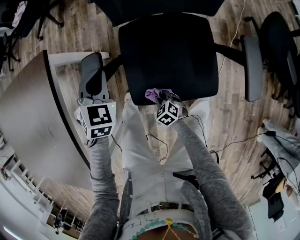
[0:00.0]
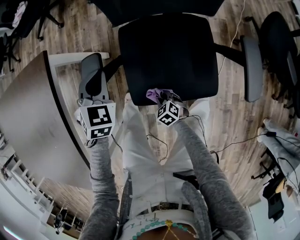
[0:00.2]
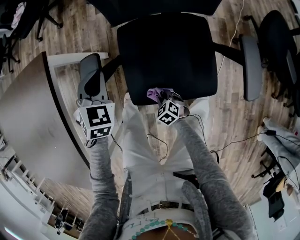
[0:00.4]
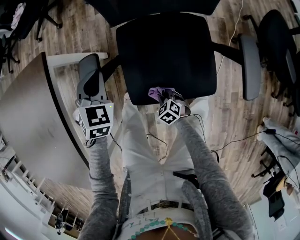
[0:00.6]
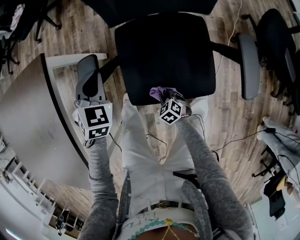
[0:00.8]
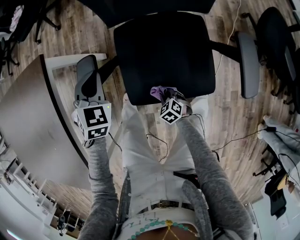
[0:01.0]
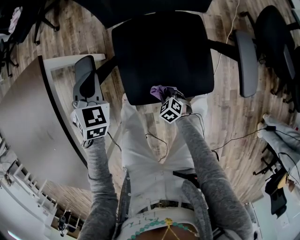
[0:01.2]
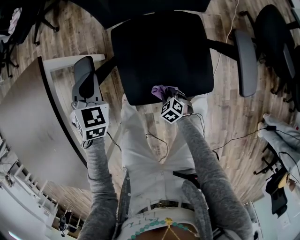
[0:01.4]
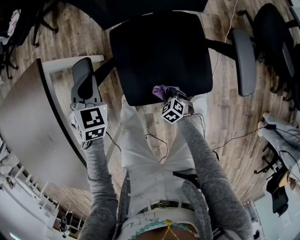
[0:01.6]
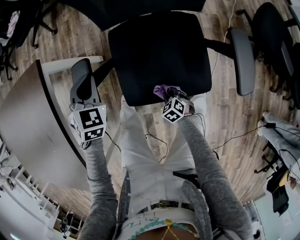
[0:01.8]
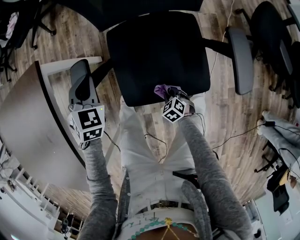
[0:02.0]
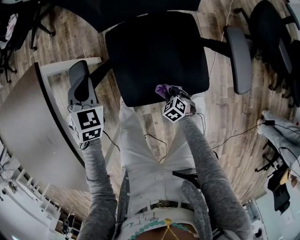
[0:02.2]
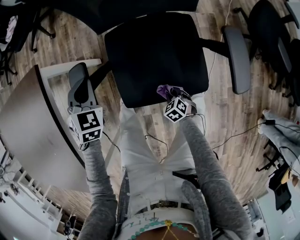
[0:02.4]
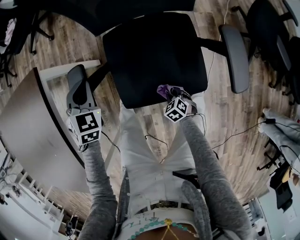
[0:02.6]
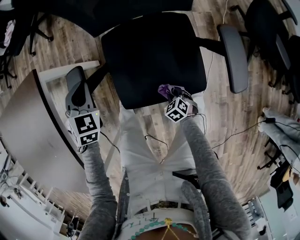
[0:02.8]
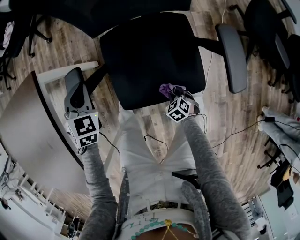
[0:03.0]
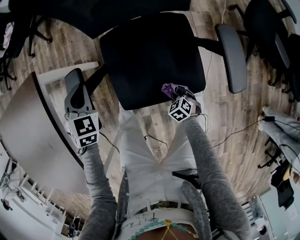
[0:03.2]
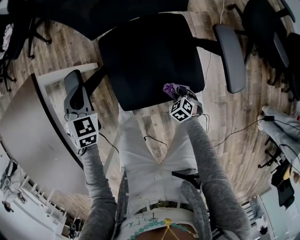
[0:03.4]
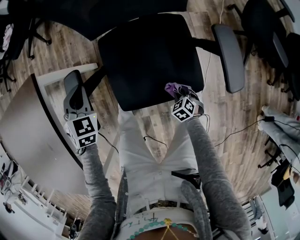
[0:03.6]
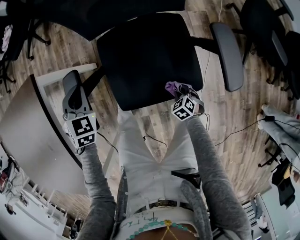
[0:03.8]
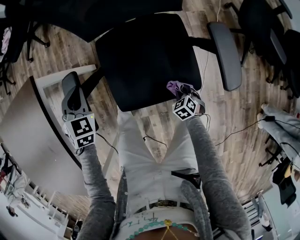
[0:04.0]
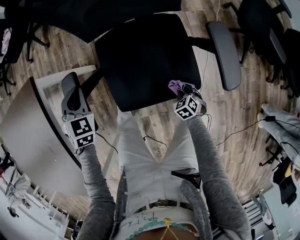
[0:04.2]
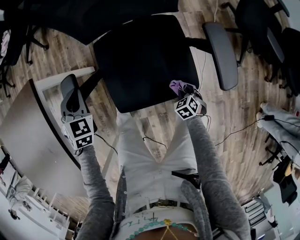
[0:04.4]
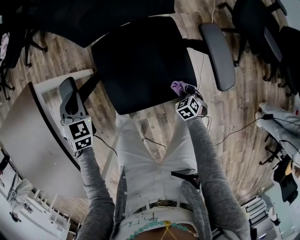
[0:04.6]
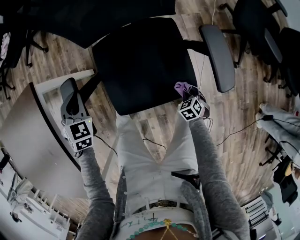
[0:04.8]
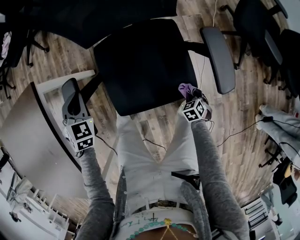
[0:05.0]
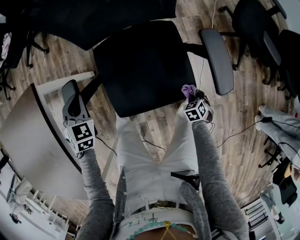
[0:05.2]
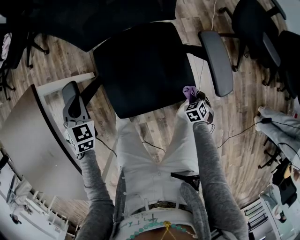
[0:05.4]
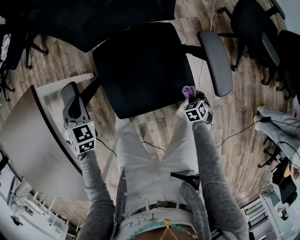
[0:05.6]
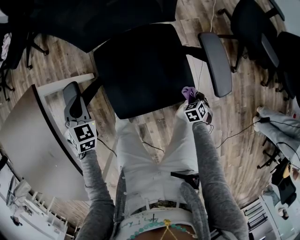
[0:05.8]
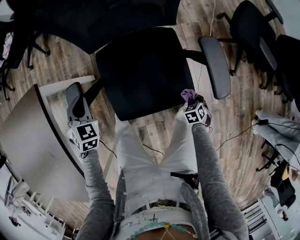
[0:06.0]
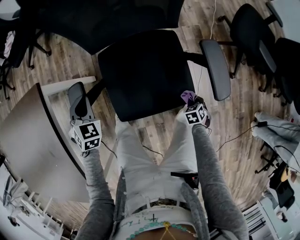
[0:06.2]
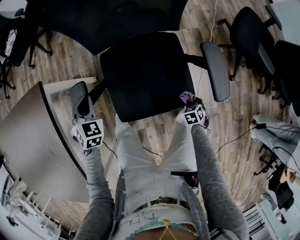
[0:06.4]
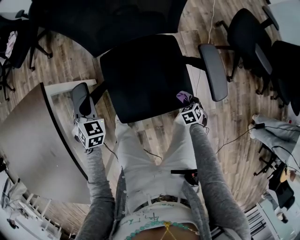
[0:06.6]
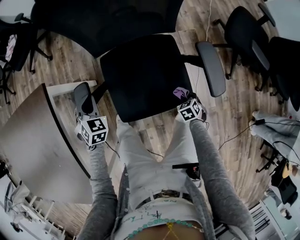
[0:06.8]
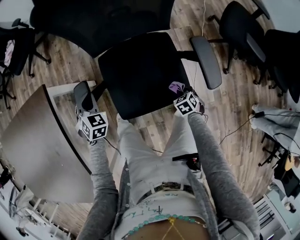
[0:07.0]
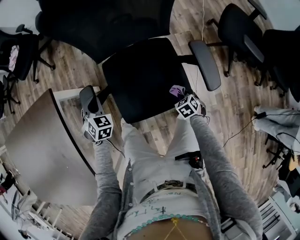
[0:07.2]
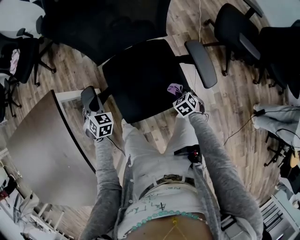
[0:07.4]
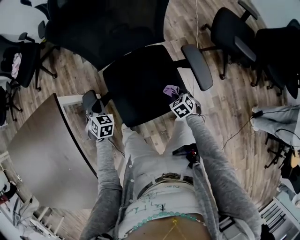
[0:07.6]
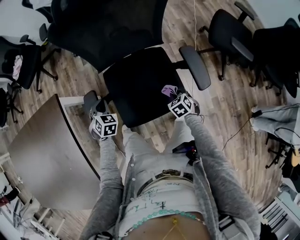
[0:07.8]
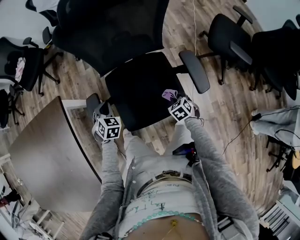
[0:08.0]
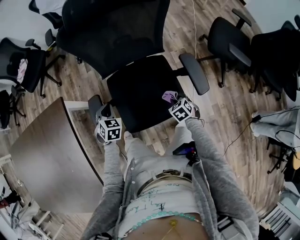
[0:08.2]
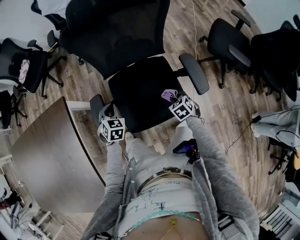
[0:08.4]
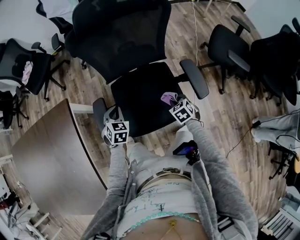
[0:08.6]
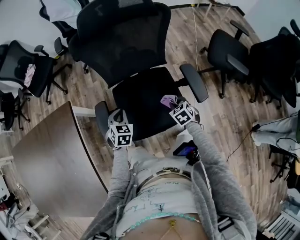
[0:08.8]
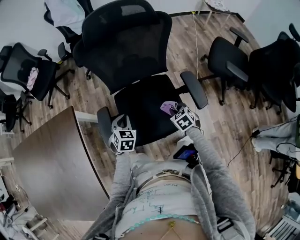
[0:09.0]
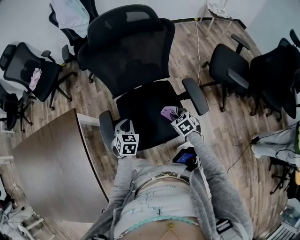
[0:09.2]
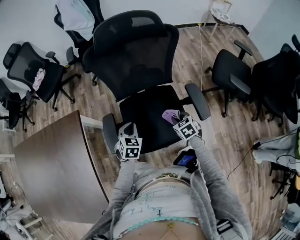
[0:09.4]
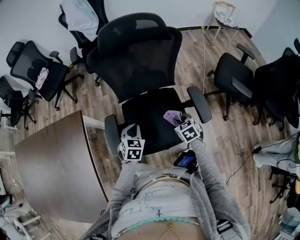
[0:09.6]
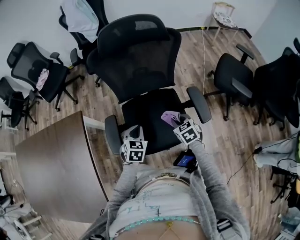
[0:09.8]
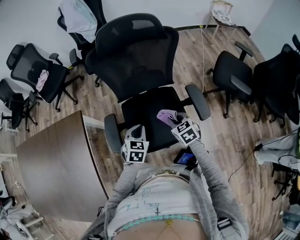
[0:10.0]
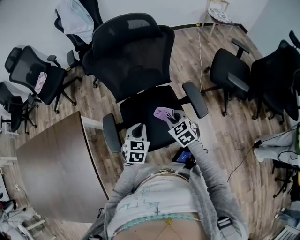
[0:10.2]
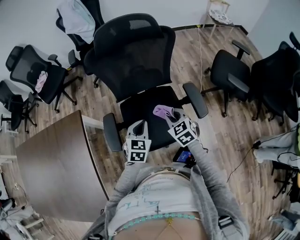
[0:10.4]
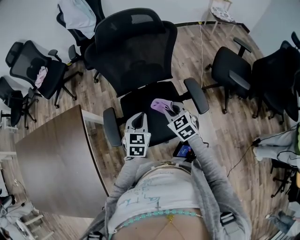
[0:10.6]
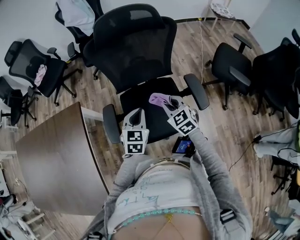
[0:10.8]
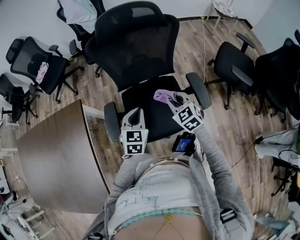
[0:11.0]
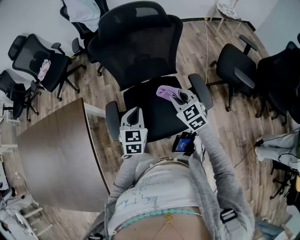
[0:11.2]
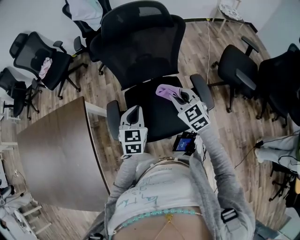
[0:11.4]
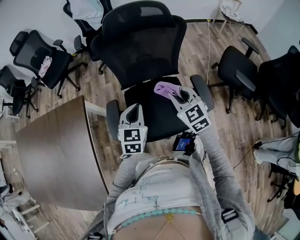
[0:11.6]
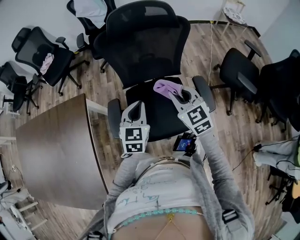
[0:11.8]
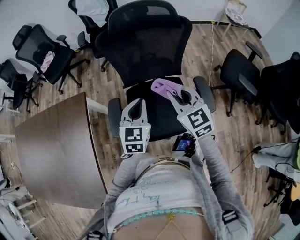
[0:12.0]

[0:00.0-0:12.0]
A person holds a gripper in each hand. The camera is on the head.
0:00.0 to 0:01.6: The right gripper goes about 5 cm to the right.
0:01.6 to 0:03.0: The right gripper travels to the right by about 5 cm.
0:03.0 to 0:04.4: The right gripper travels to the right by some 10 cm.
0:04.4 to 0:06.0: The right gripper travels to the right by some 10 cm.
0:06.0 to 0:07.6: The right gripper is displaced upward, to the left and forward by approximately 15 cm.
0:07.6 to 0:09.0: The left gripper travels to the right and upward by approximately 10 cm; the right gripper is displaced upward by roughly 10 cm.
0:09.0 to 0:10.4: The left gripper travels upward and to the right by about 10 cm; the right gripper moves upward, some 15 cm.
0:10.4 to 0:12.0: The grippers both shift upward by some 10 cm. The right gripper turns by roughly 20 degrees.

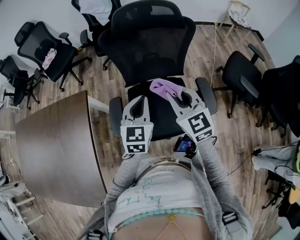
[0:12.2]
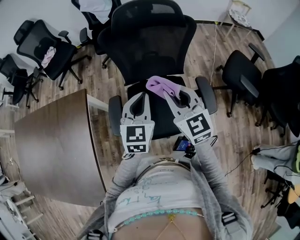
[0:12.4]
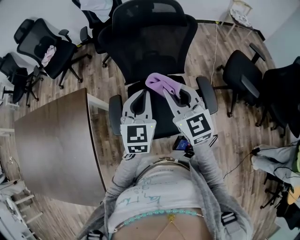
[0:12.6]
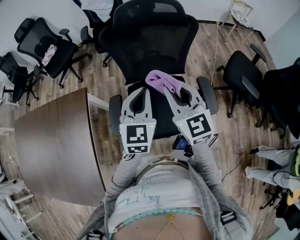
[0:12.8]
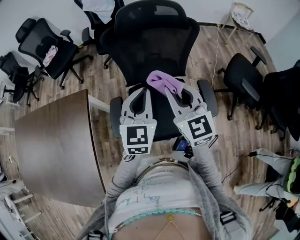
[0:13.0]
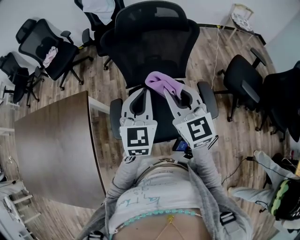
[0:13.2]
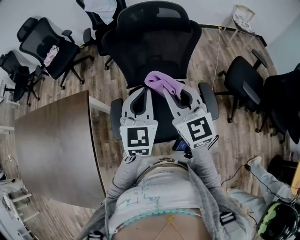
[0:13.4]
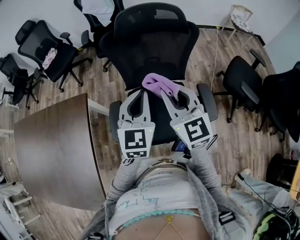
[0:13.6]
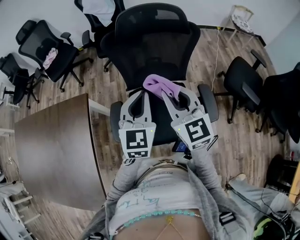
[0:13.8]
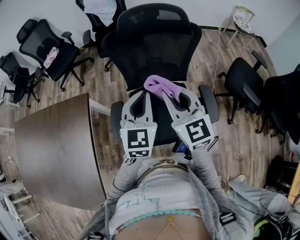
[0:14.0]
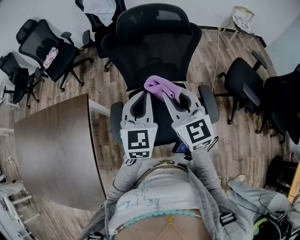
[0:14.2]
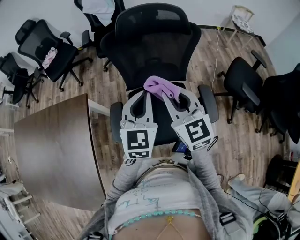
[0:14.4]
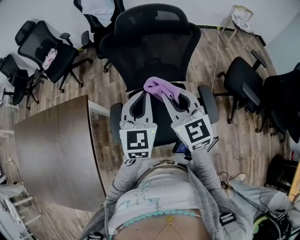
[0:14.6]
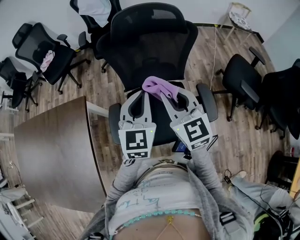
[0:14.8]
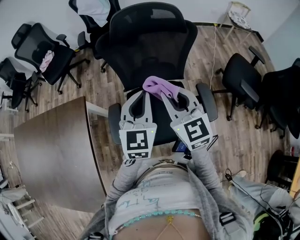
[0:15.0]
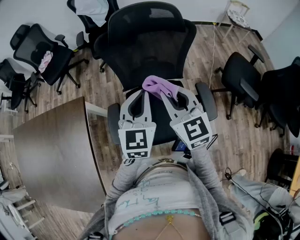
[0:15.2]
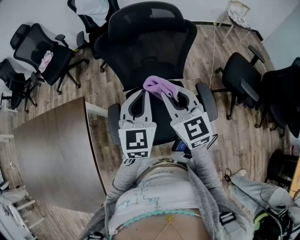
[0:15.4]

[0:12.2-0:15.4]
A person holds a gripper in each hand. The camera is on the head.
0:12.2 to 0:13.8: The grippers both shift upward by about 5 cm.
0:13.8 to 0:15.4: The grippers stay close to where they were, moving slightly.

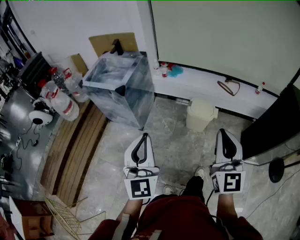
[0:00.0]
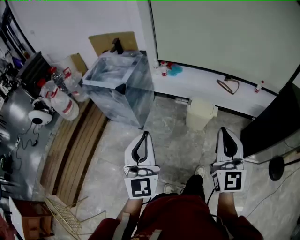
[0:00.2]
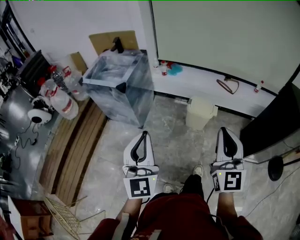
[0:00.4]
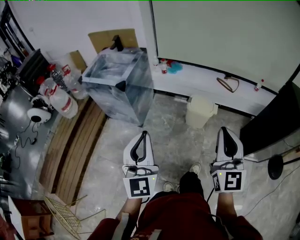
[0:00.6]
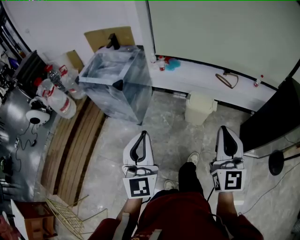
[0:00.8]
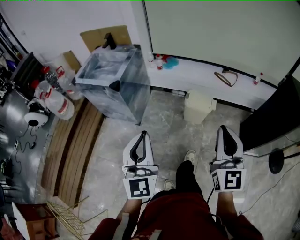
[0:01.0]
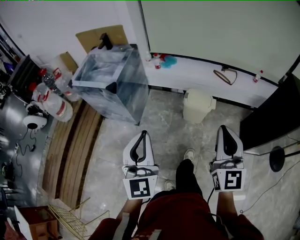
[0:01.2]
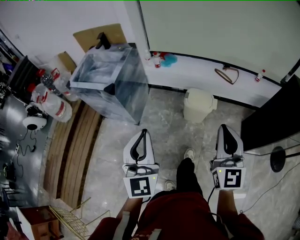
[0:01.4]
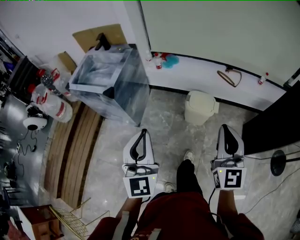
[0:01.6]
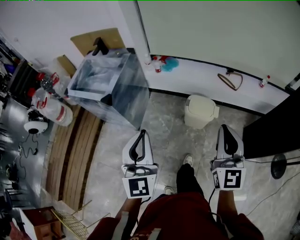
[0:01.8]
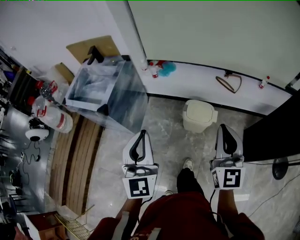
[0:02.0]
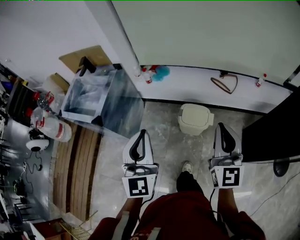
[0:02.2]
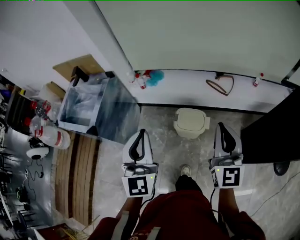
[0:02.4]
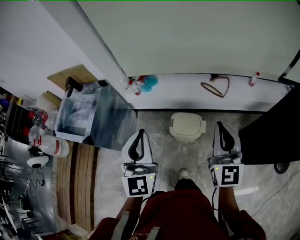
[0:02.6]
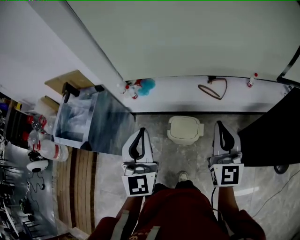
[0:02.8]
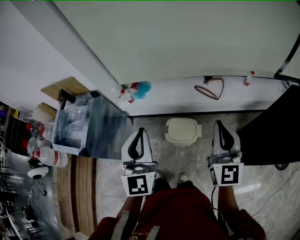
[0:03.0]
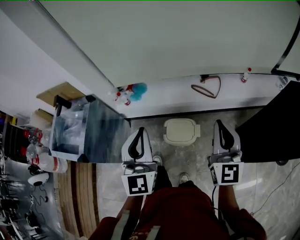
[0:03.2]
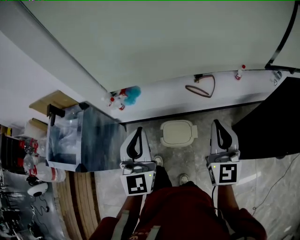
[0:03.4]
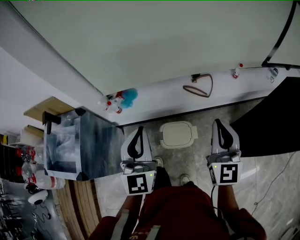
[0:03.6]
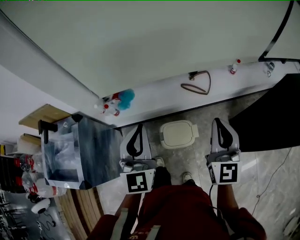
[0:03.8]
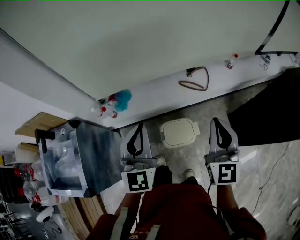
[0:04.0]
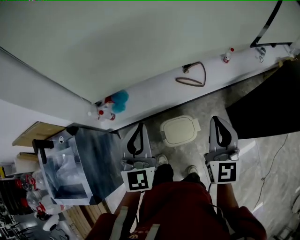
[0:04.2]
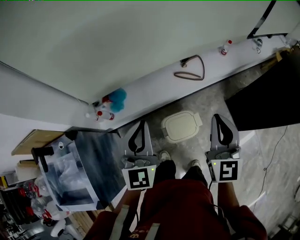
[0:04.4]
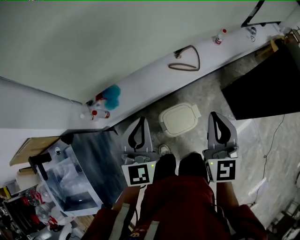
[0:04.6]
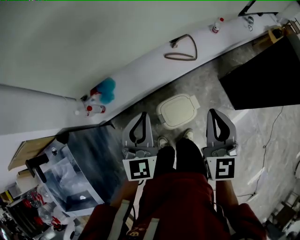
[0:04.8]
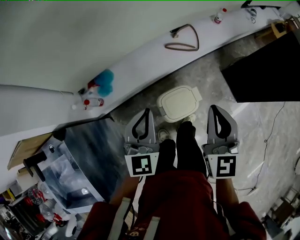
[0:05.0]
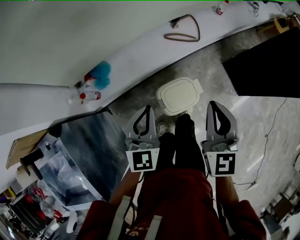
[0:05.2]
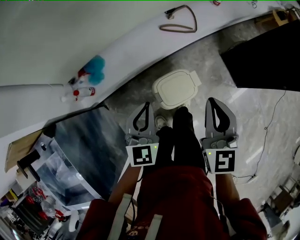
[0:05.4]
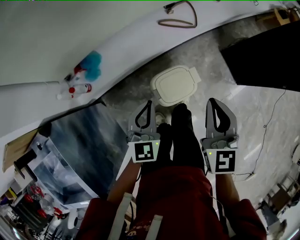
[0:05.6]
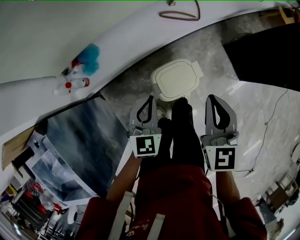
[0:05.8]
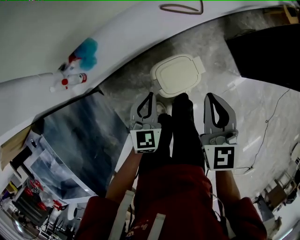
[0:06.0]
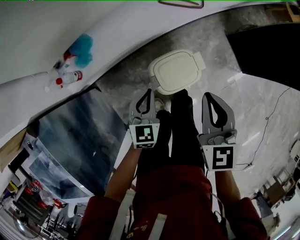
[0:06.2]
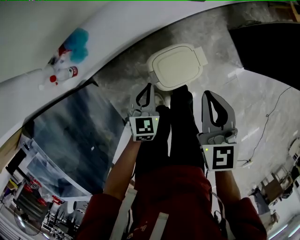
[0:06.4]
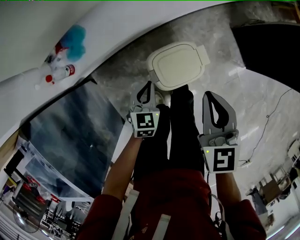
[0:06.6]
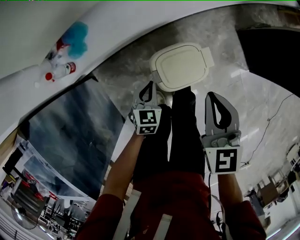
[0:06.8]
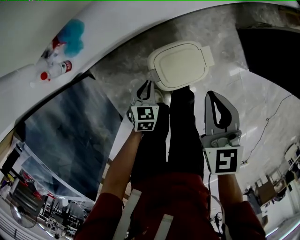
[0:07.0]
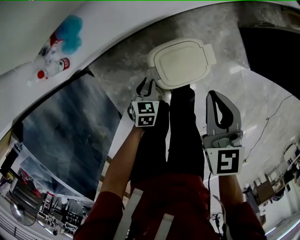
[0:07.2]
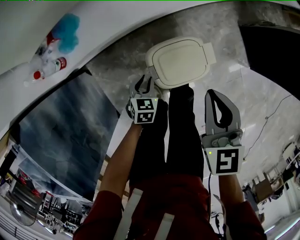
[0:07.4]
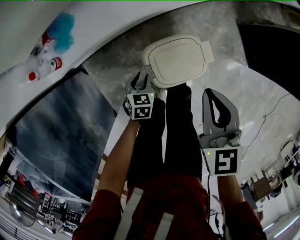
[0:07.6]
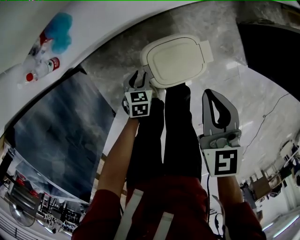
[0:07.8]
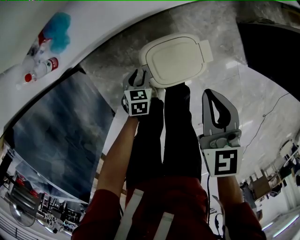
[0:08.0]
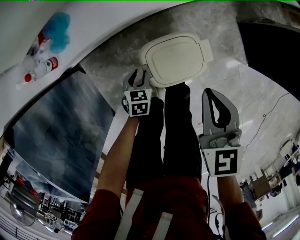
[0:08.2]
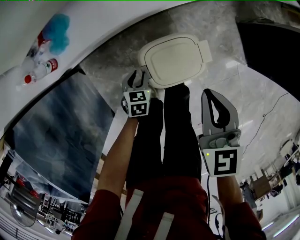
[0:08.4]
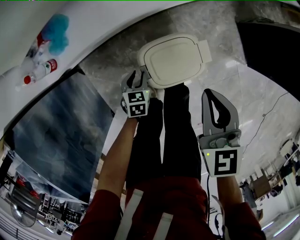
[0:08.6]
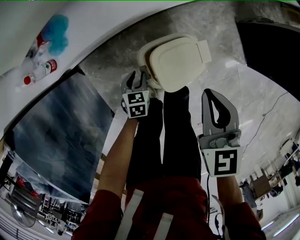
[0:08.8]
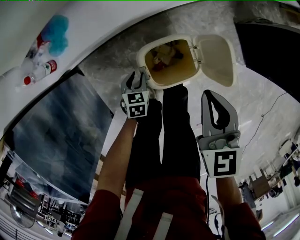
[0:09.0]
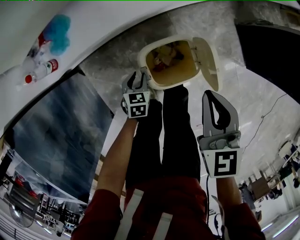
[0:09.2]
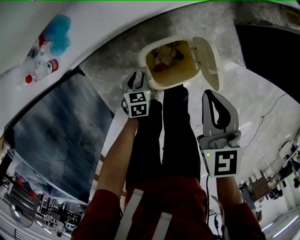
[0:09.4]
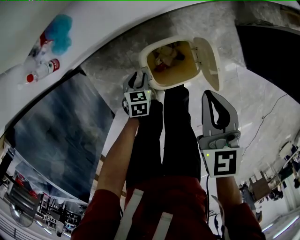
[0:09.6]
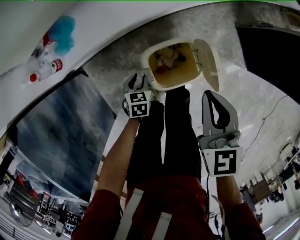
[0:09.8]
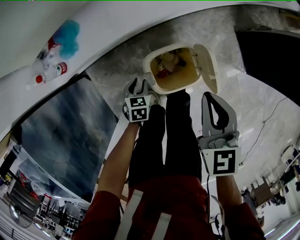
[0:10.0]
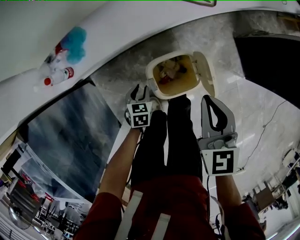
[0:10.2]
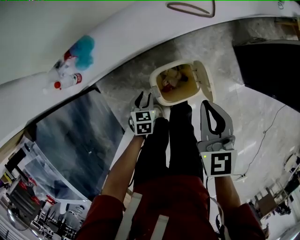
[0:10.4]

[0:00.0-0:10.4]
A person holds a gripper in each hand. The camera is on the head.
0:00.0 to 0:01.4: Both grippers travel together forward, some 5 cm.
0:01.4 to 0:03.0: The two grippers go some 40 cm forward and to the right.
0:03.0 to 0:04.4: The left gripper moves forward, downward and to the left, about 25 cm, and turns by approximately 30 degrees. Meanwhile the right gripper travels to the left, forward and downward by roughly 15 cm, and changes its angle by about 30 degrees.
0:04.4 to 0:06.0: The left gripper shifts roughly 35 cm downward, and turns by roughly 30 degrees. The right gripper heads downward, covering roughly 20 cm.
0:06.0 to 0:07.4: The right gripper goes about 15 cm downward; the left gripper goes roughly 25 cm downward, rotates about 30 degrees, and opens up.
0:07.4 to 0:09.0: The grippers move only a little.
0:09.0 to 0:10.4: Both grippers travel together upward, approximately 10 cm.
